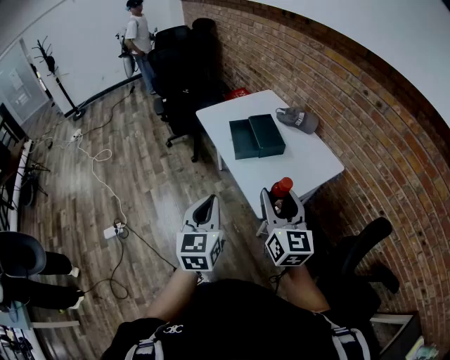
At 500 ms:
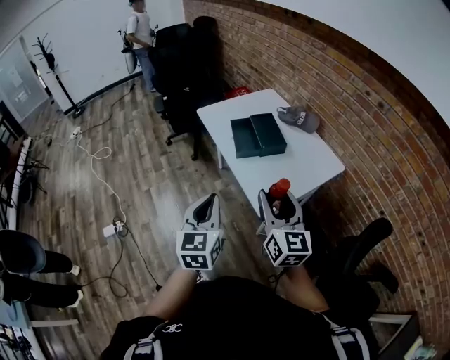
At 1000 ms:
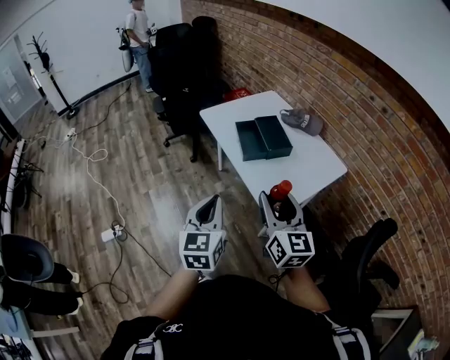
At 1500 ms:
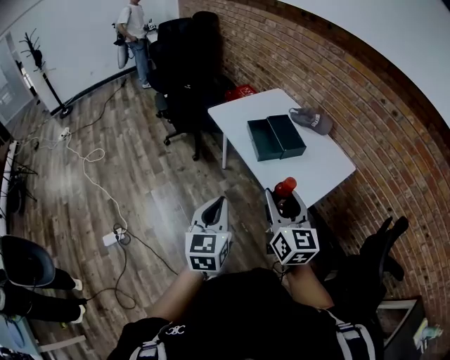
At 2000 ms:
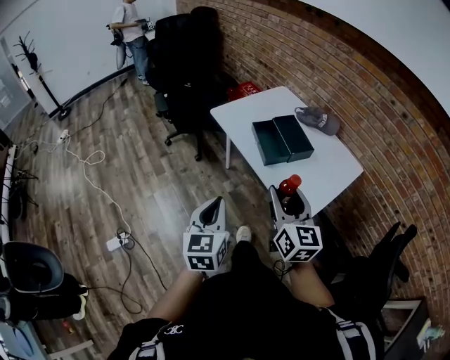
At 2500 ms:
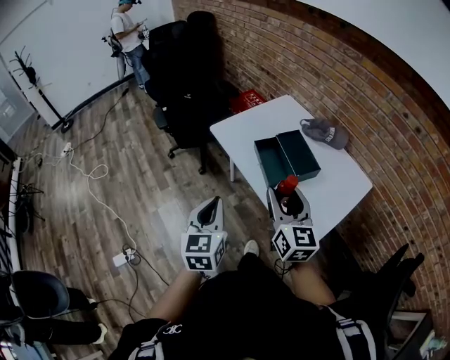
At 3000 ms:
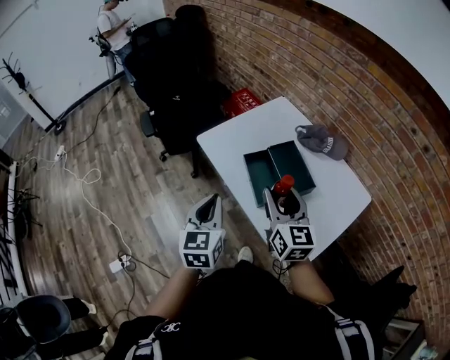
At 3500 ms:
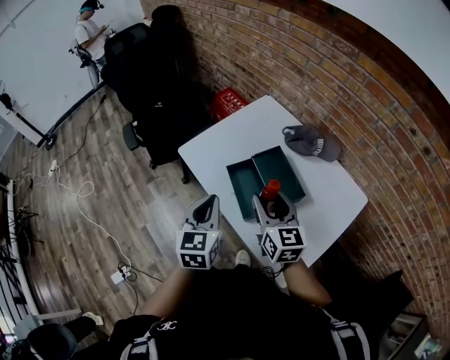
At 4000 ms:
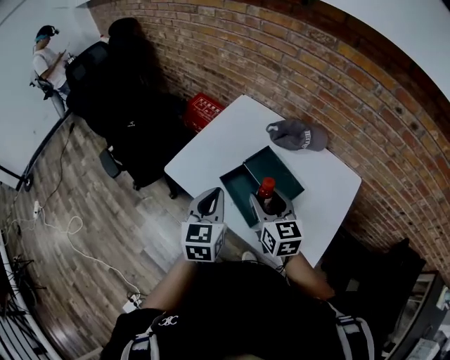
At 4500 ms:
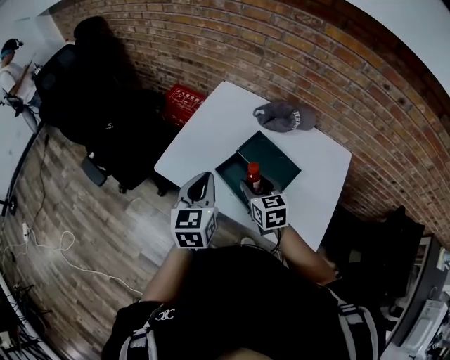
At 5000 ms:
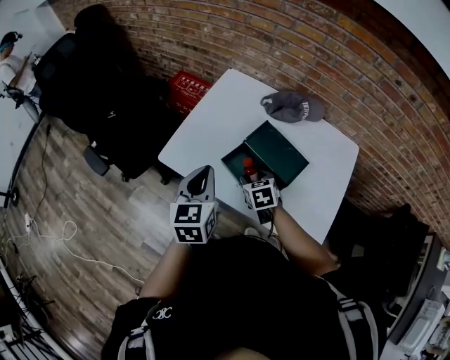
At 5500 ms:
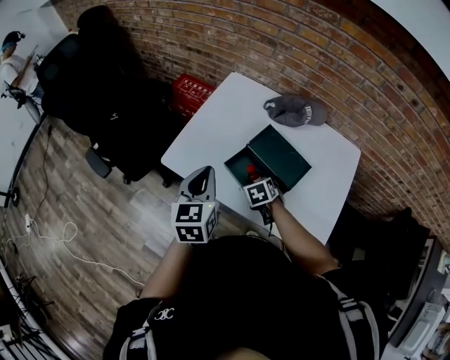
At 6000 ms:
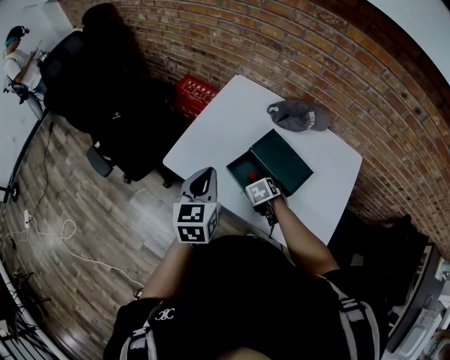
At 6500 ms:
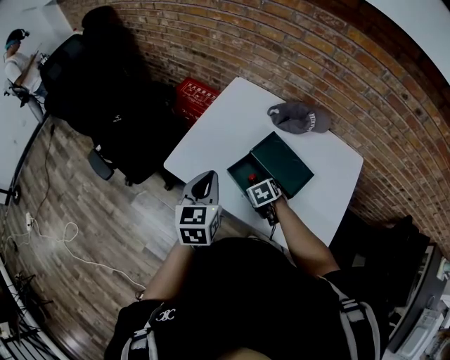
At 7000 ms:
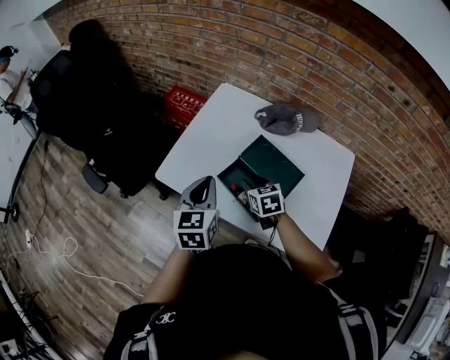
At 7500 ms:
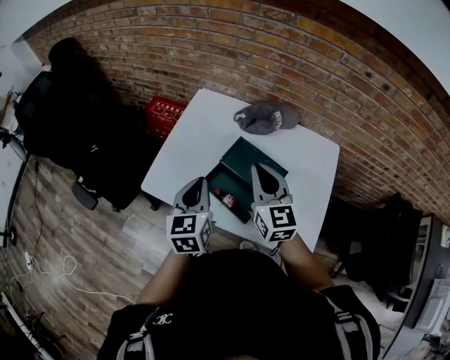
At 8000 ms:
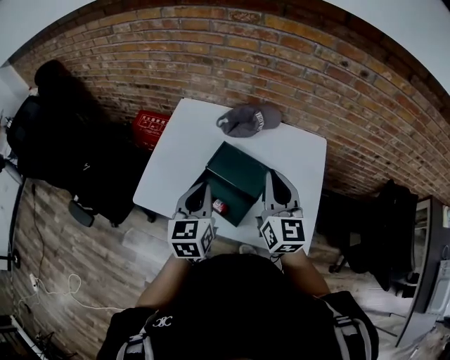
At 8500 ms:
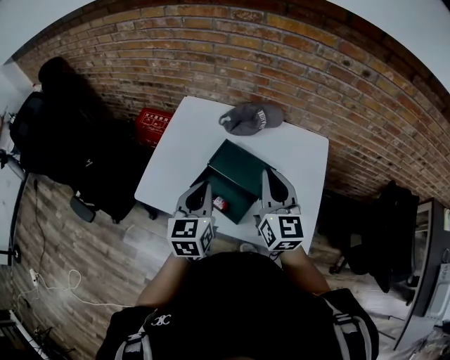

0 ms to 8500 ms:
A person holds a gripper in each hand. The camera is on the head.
0 ms to 2000 ms: The two grippers go approximately 20 cm to the left and forward.
2000 ms to 4000 ms: The grippers both shift forward by about 40 cm. The left gripper changes its angle by some 20 degrees.
4000 ms to 6500 ms: The left gripper shifts by some 10 cm. Meanwhile the right gripper moves downward, roughly 25 cm, and angles its fingers downward, by about 50 degrees.
6500 ms to 8500 ms: The left gripper is displaced to the right by some 10 cm. The right gripper goes some 35 cm upward and to the right, angles its fingers upward, by roughly 70 degrees, and closes up.

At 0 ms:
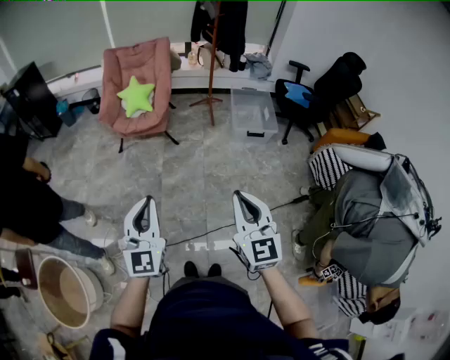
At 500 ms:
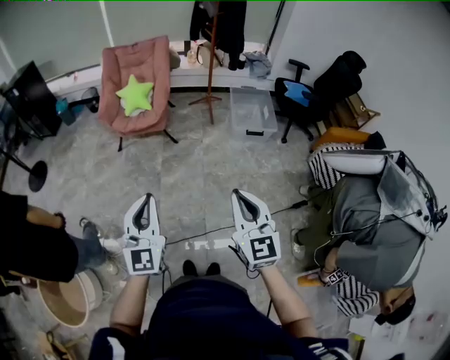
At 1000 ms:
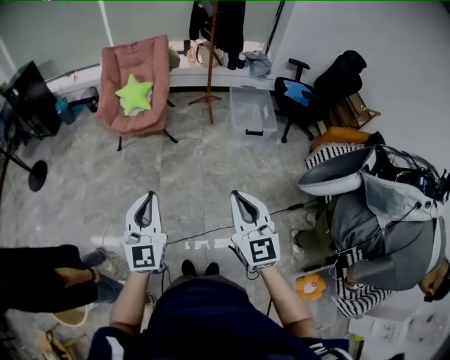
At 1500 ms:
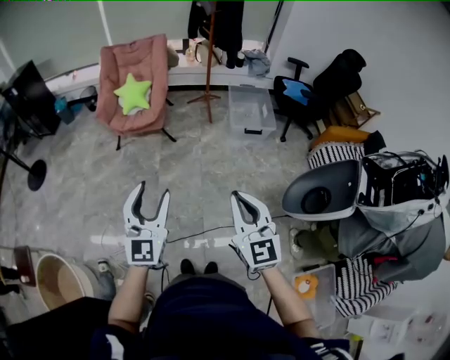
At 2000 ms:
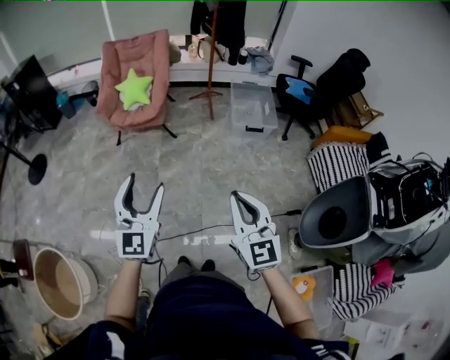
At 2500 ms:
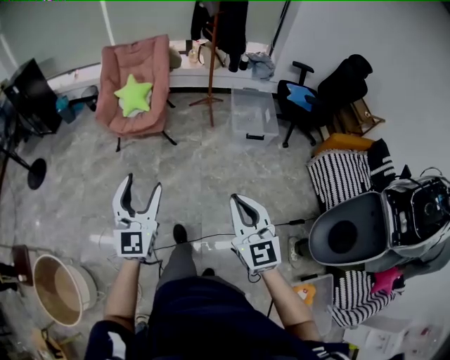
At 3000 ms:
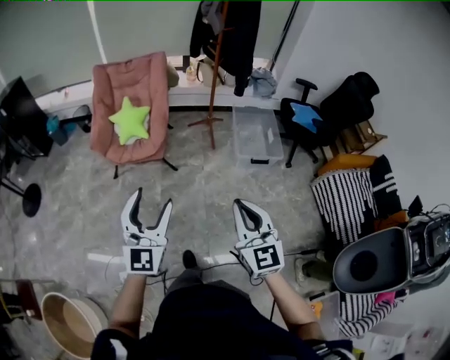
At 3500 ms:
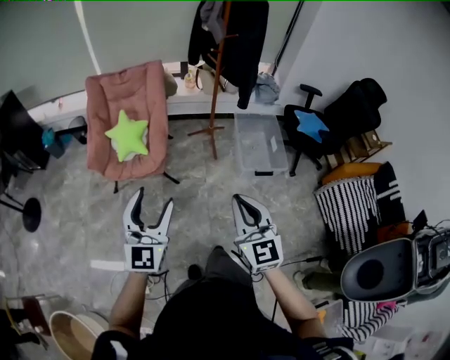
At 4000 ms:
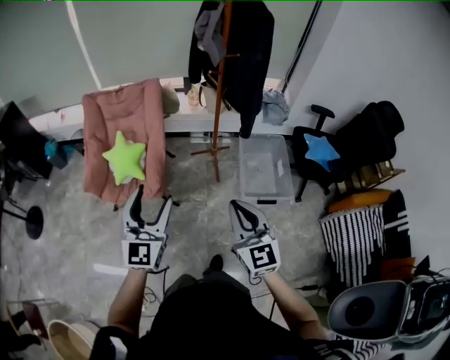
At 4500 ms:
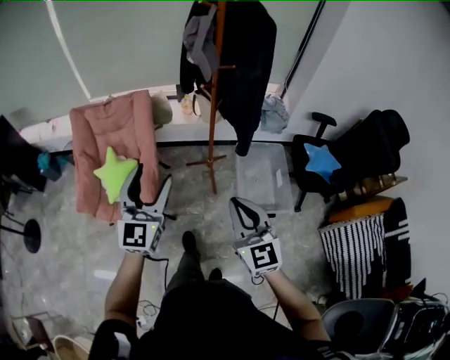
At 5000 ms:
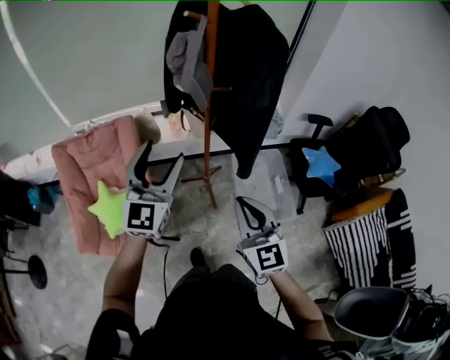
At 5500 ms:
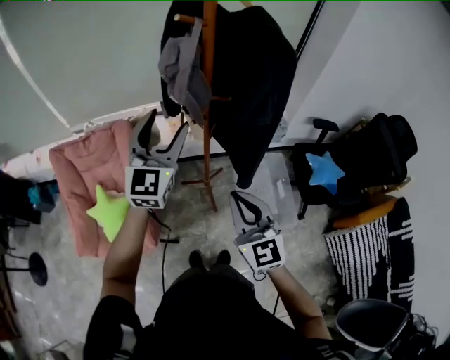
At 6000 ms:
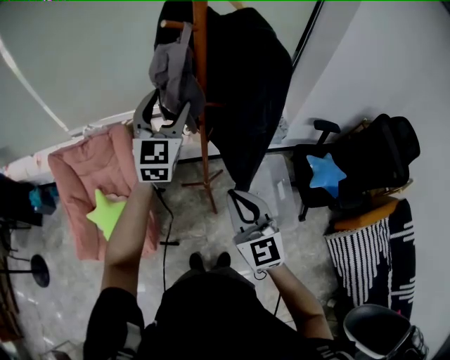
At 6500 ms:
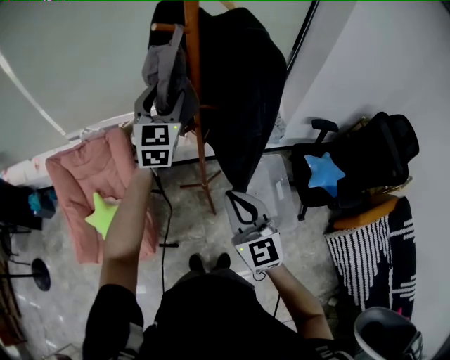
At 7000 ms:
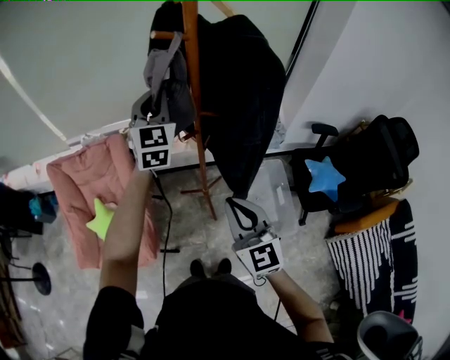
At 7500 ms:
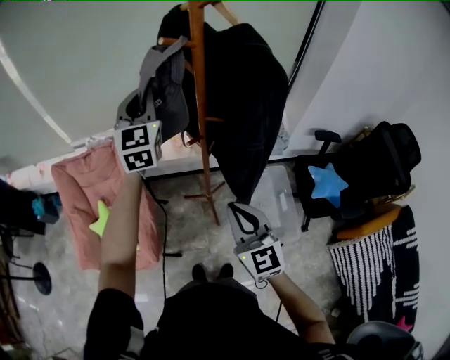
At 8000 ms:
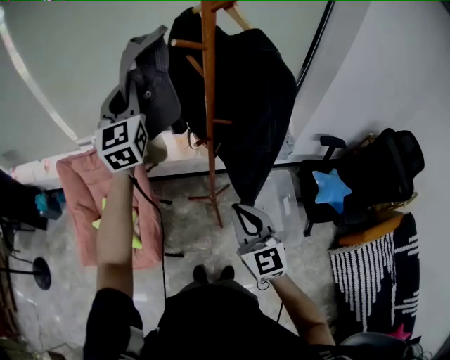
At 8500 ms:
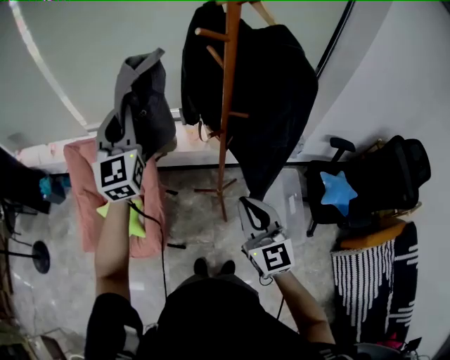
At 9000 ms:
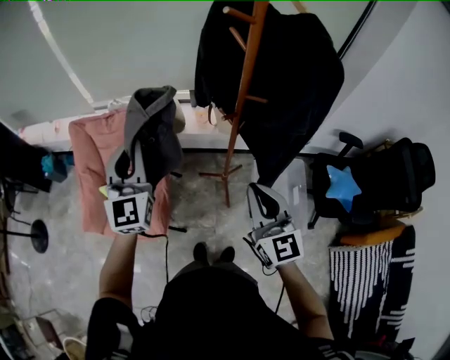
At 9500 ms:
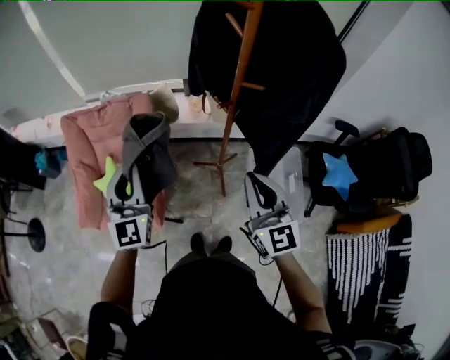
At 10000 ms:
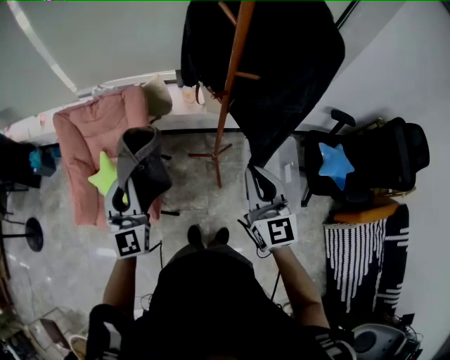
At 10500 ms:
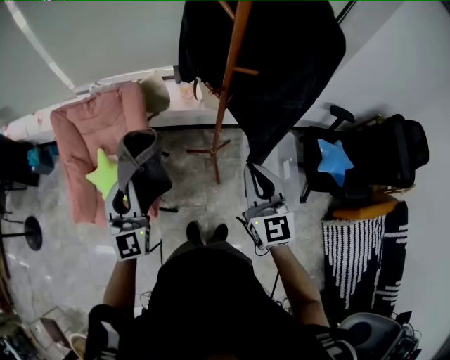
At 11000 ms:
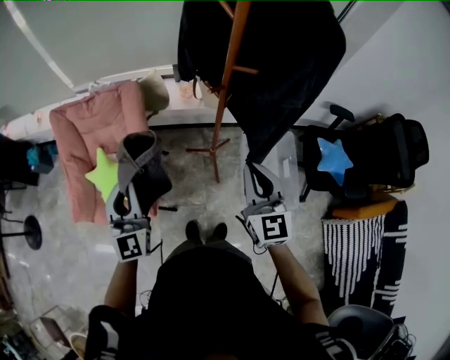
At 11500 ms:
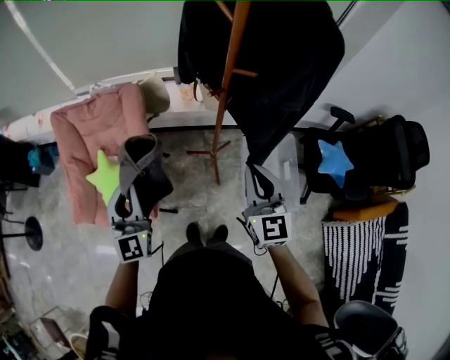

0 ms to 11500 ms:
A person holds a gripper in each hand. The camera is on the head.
0 ms to 2000 ms: The left gripper ends up approximately 5 cm from where it was, and opens.
2000 ms to 4000 ms: The two grippers travel together, forward, roughly 60 cm.
4000 ms to 6000 ms: Both grippers are carried forward, about 50 cm.
6000 ms to 7500 ms: The left gripper goes about 10 cm to the left and forward, and closes.
7500 ms to 9500 ms: The left gripper is displaced backward, to the left and downward by some 30 cm.
9500 ms to 11500 ms: The left gripper shifts roughly 5 cm downward. Meanwhile the right gripper shifts by approximately 5 cm.

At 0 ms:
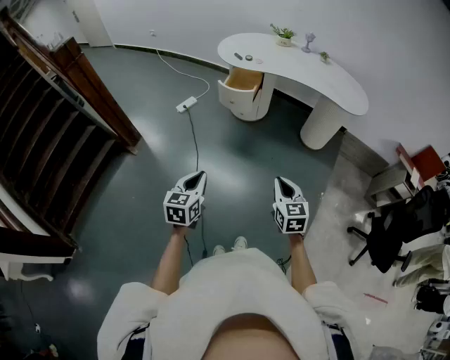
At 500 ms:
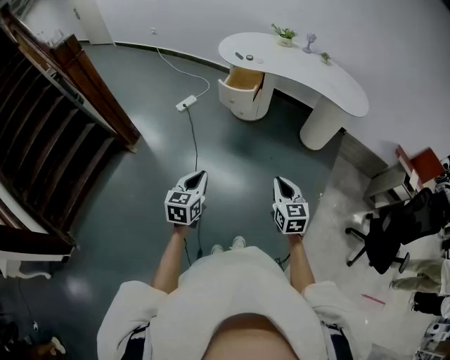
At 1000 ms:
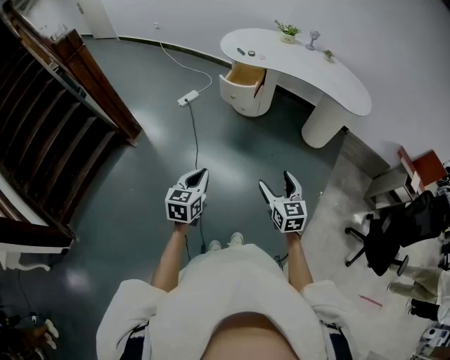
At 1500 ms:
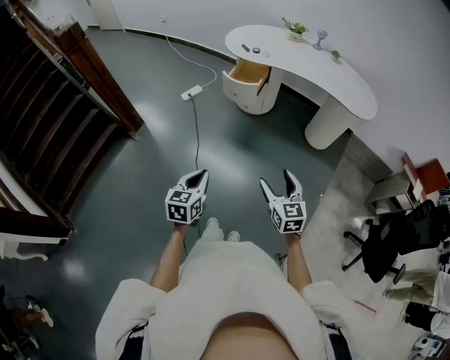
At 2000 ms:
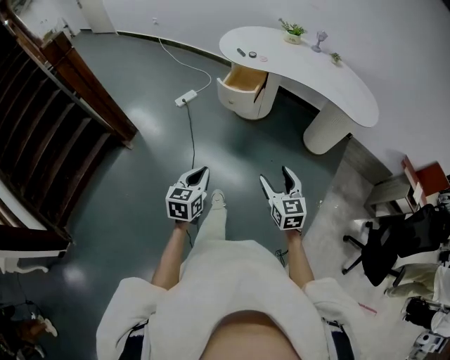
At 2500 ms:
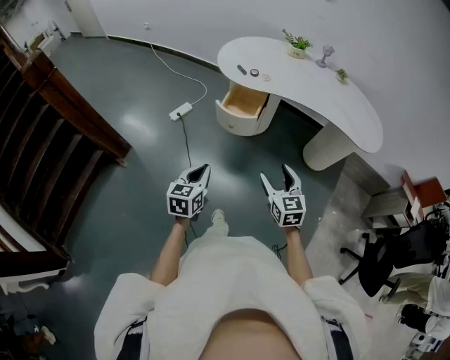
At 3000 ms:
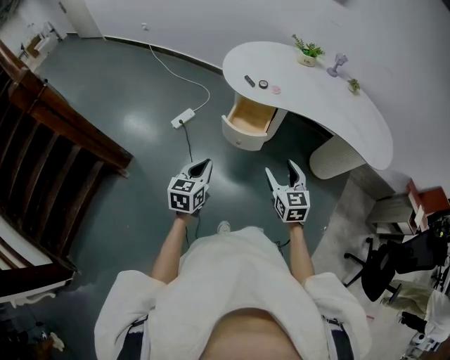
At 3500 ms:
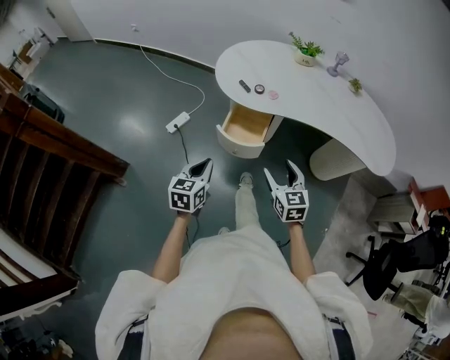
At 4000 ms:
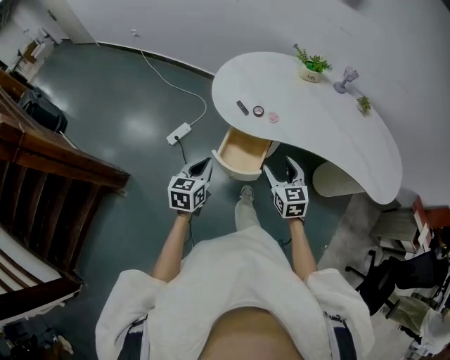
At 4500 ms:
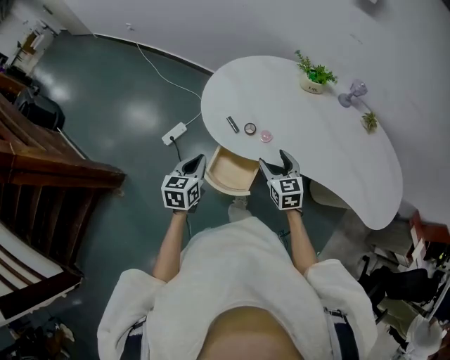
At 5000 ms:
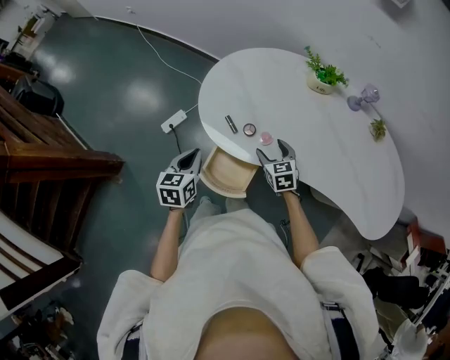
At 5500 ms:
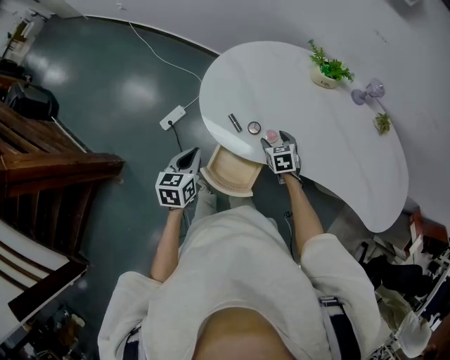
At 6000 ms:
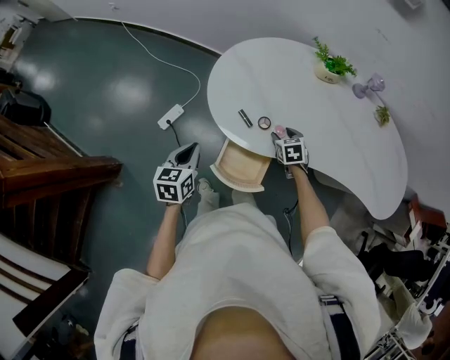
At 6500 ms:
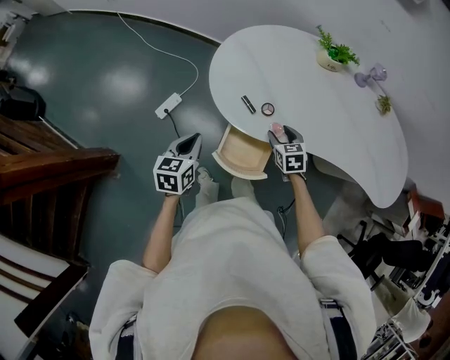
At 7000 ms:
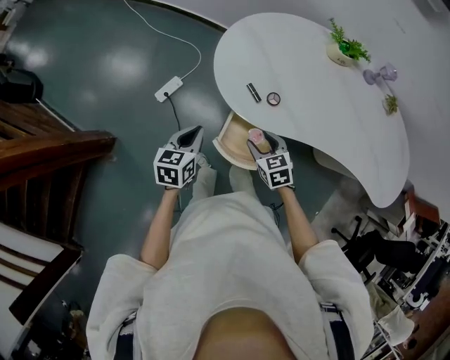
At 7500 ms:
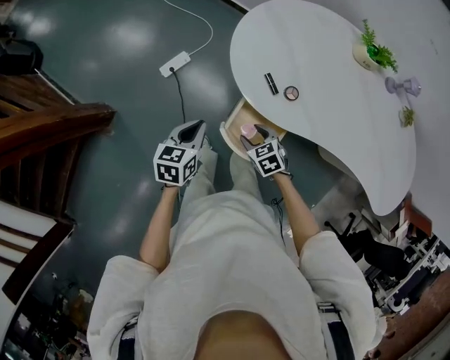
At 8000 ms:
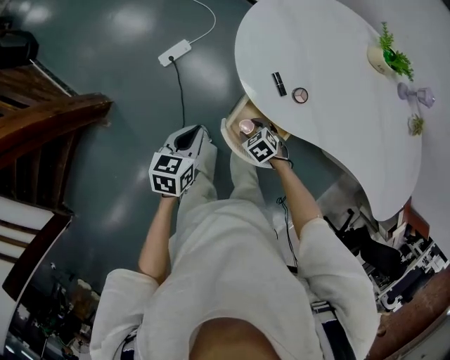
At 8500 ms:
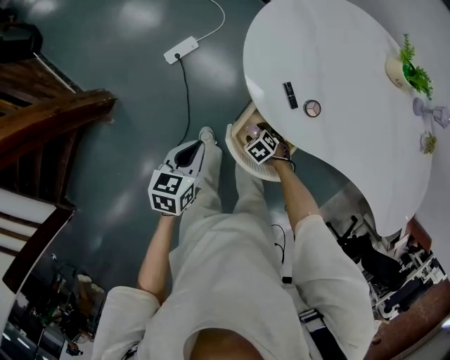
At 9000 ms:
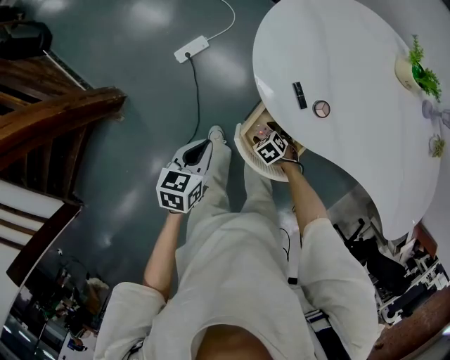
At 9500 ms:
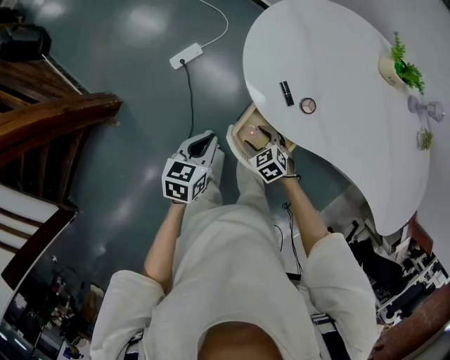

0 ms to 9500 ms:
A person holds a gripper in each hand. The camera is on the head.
0 ms to 2000 ms: Both grippers move forward, some 10 cm. The right gripper opens up.
2000 ms to 4000 ms: Both grippers are carried forward, about 60 cm.
4000 ms to 5500 ms: The right gripper shifts approximately 30 cm forward and downward, and changes its angle by about 30 degrees, while the left gripper moves forward, approximately 20 cm.
5500 ms to 7500 ms: The left gripper is displaced to the left and downward by roughly 10 cm. Meanwhile the right gripper goes approximately 25 cm to the left and backward, and rotates approximately 20 degrees.
7500 ms to 9500 ms: The right gripper reaches roughly 20 cm downward, then returns.
